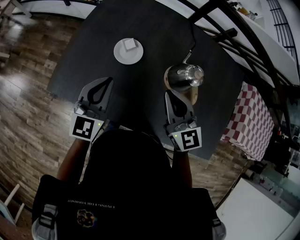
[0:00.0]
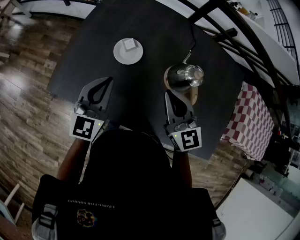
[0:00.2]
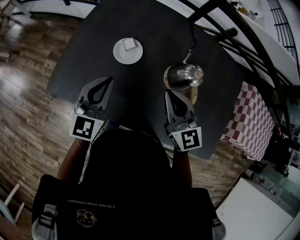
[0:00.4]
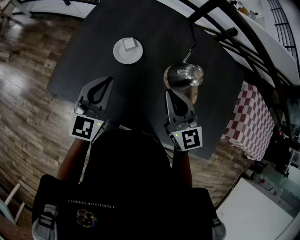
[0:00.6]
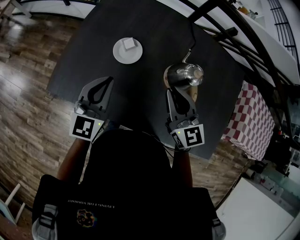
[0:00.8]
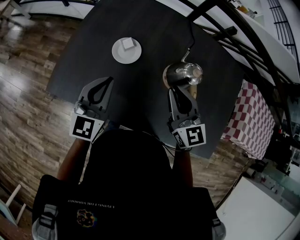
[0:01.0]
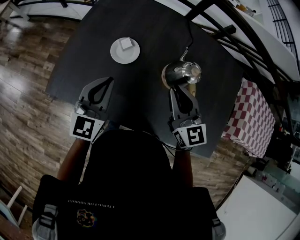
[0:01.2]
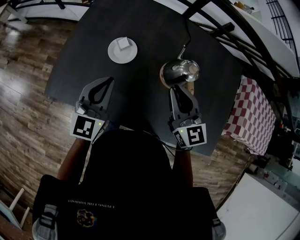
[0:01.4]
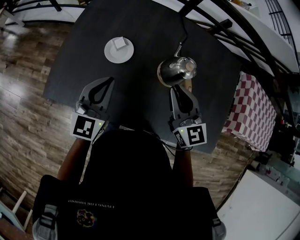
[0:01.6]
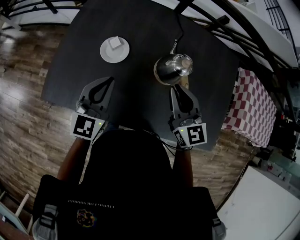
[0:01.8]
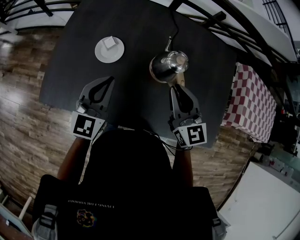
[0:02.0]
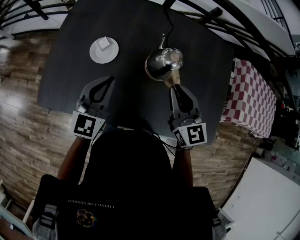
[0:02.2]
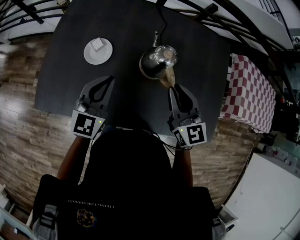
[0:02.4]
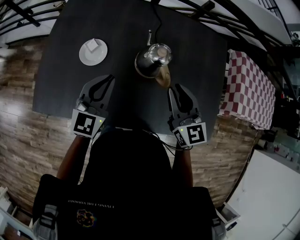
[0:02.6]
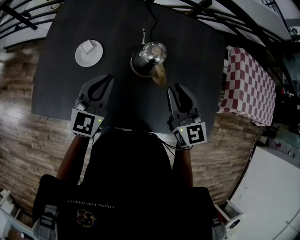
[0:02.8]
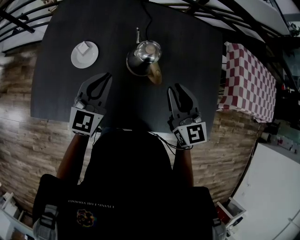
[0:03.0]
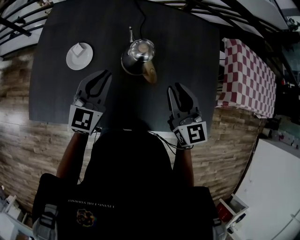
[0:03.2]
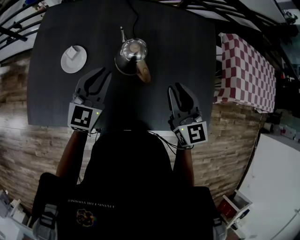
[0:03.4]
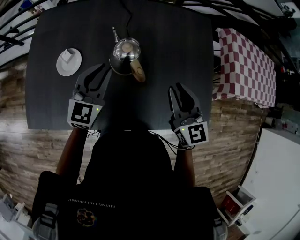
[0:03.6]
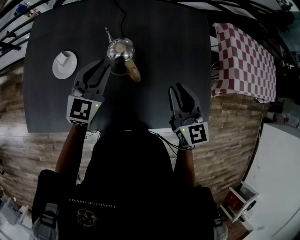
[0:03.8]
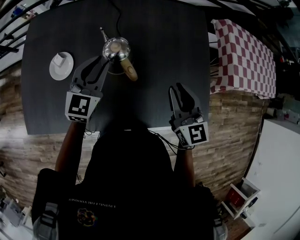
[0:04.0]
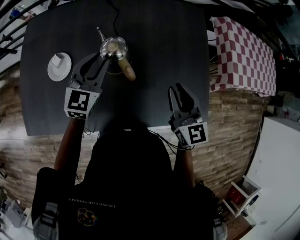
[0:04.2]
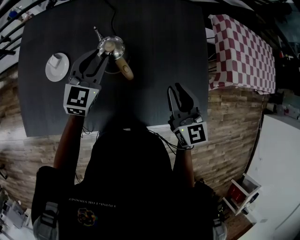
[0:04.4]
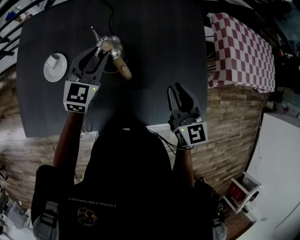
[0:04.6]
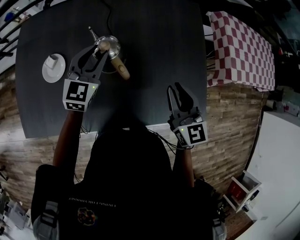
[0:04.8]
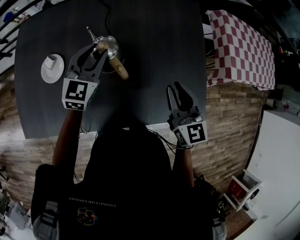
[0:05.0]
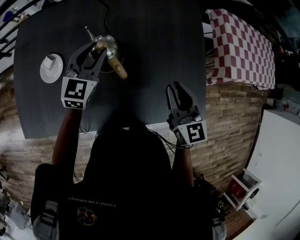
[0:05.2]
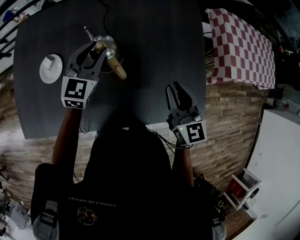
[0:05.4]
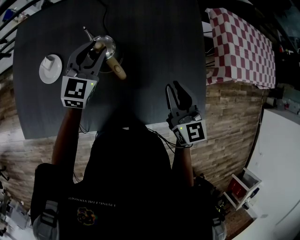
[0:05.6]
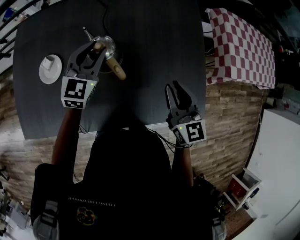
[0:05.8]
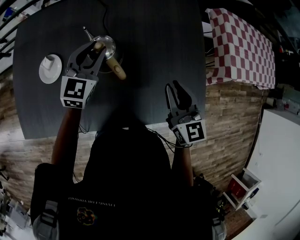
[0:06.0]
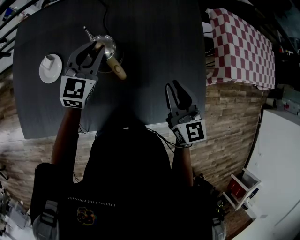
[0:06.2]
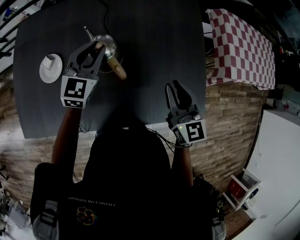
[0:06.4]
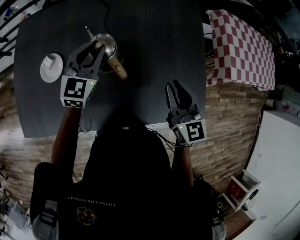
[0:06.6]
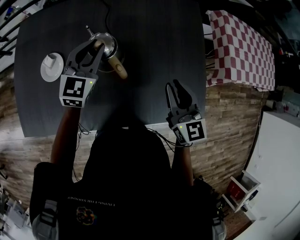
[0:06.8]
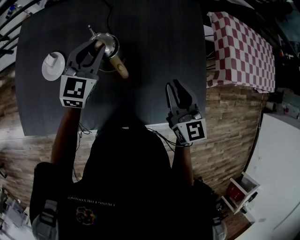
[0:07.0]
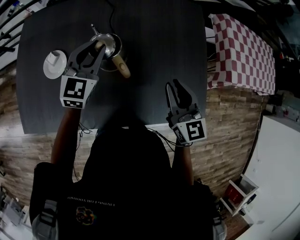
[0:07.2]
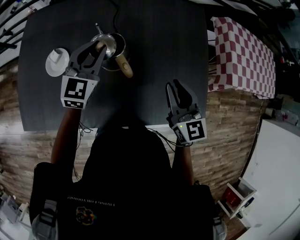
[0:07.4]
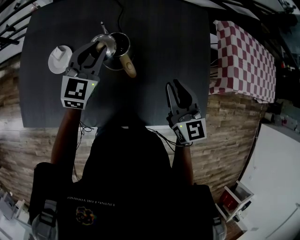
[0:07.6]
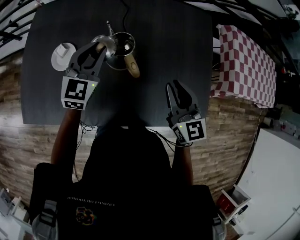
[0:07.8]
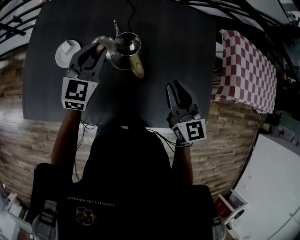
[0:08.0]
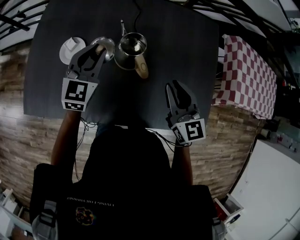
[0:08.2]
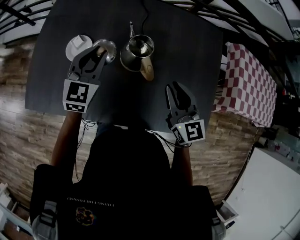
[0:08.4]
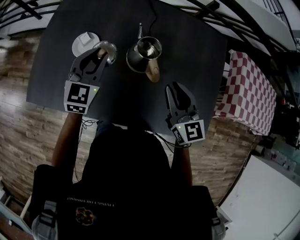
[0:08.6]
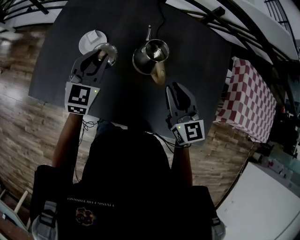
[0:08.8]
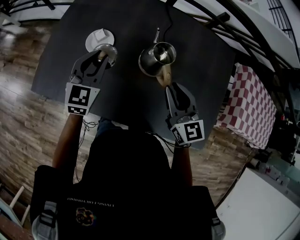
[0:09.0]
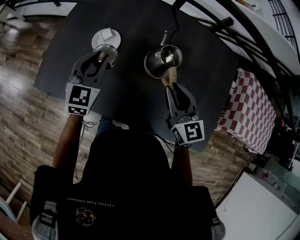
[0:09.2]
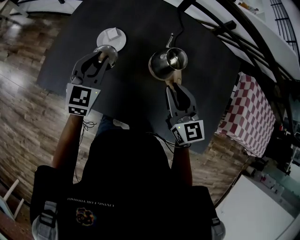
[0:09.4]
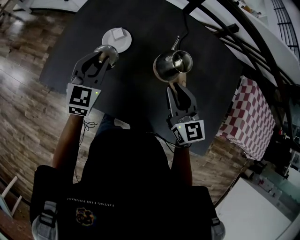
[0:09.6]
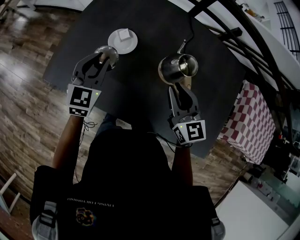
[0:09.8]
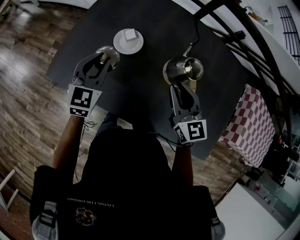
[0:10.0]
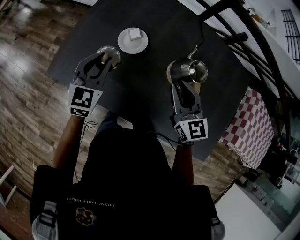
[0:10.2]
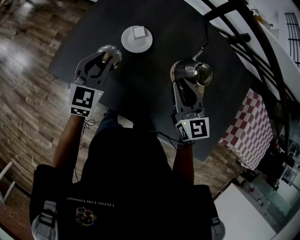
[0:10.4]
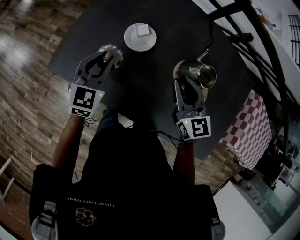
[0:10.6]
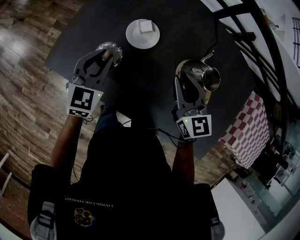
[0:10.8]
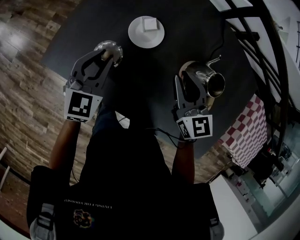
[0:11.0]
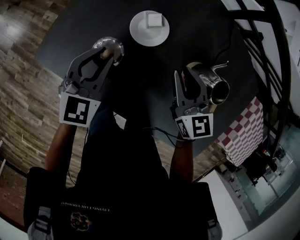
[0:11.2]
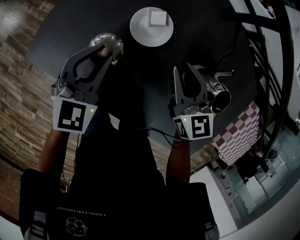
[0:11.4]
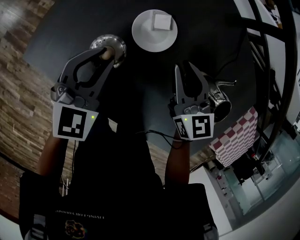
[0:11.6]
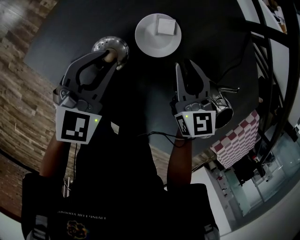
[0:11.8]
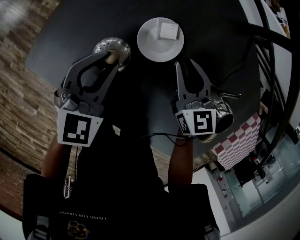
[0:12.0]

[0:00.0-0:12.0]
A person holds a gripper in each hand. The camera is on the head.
0:00.0 to 0:01.6: The right gripper is displaced to the right by about 5 cm.
0:01.6 to 0:03.0: The two grippers go some 15 cm to the right.
0:03.0 to 0:04.4: The left gripper travels forward and to the right by about 15 cm, and opens up, while the right gripper goes about 10 cm to the right.
0:04.4 to 0:06.0: The grippers make only small movements.
0:06.0 to 0:07.6: The left gripper ends up approximately 5 cm from where it was.
0:07.6 to 0:09.0: Both grippers travel together to the left, some 15 cm.
0:09.0 to 0:10.4: The left gripper is displaced to the left by roughly 15 cm; the right gripper shifts approximately 15 cm to the left and forward.
0:10.4 to 0:12.0: The right gripper goes roughly 25 cm forward, downward and to the left, while the left gripper shifts some 10 cm downward and forward.

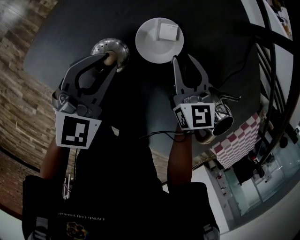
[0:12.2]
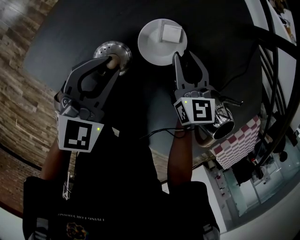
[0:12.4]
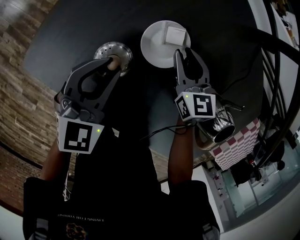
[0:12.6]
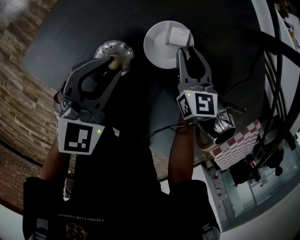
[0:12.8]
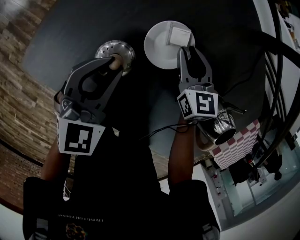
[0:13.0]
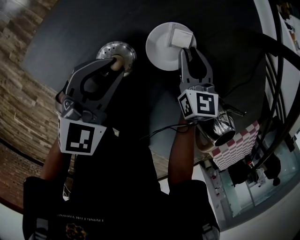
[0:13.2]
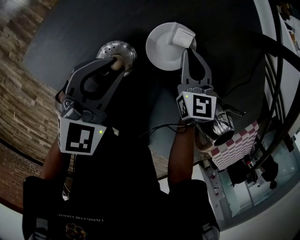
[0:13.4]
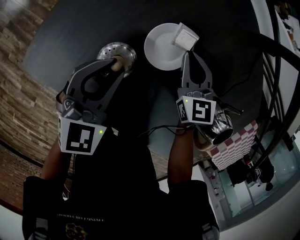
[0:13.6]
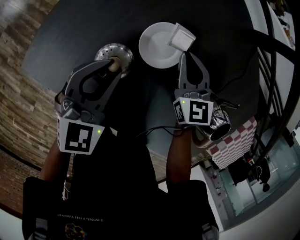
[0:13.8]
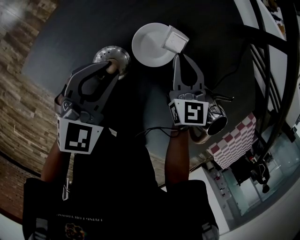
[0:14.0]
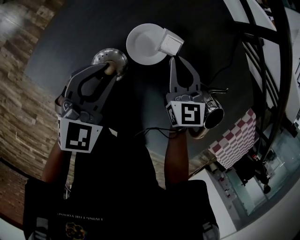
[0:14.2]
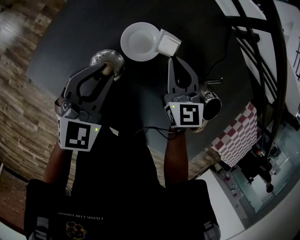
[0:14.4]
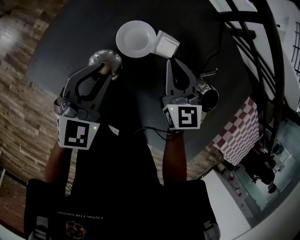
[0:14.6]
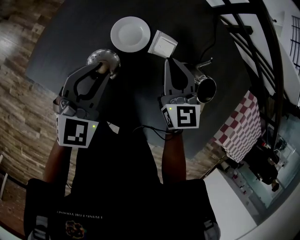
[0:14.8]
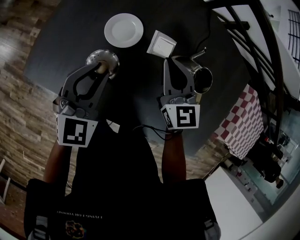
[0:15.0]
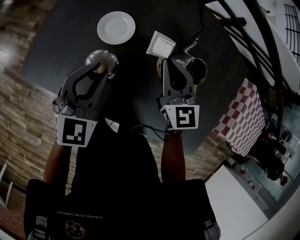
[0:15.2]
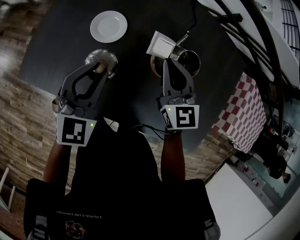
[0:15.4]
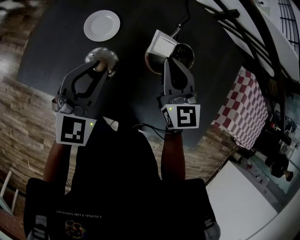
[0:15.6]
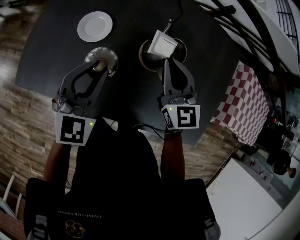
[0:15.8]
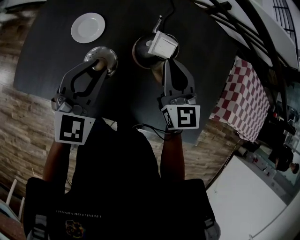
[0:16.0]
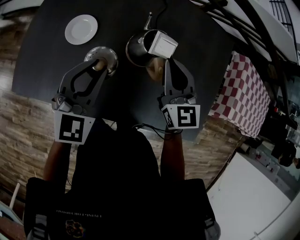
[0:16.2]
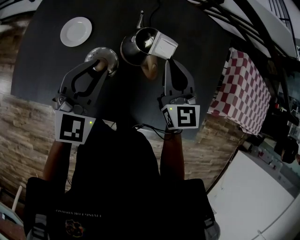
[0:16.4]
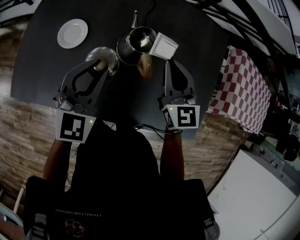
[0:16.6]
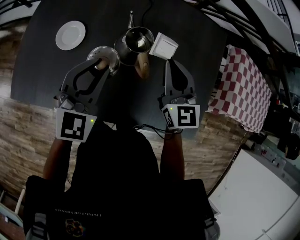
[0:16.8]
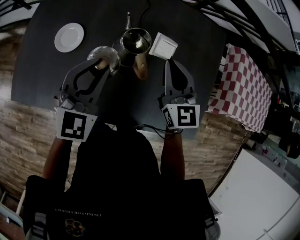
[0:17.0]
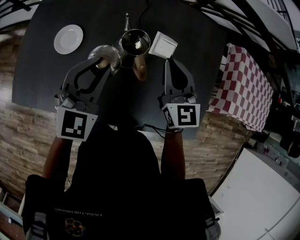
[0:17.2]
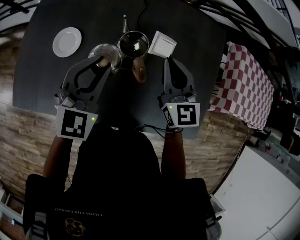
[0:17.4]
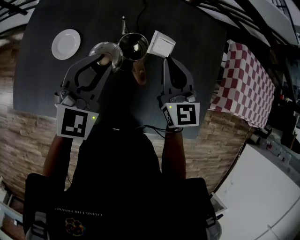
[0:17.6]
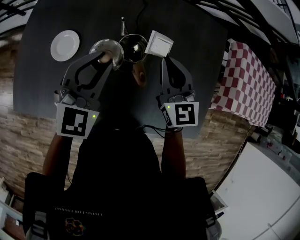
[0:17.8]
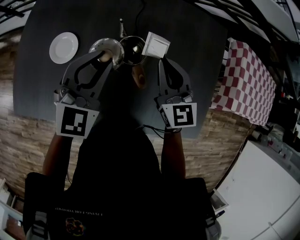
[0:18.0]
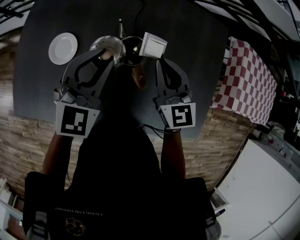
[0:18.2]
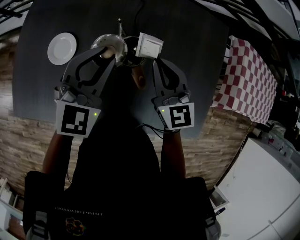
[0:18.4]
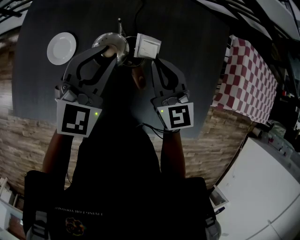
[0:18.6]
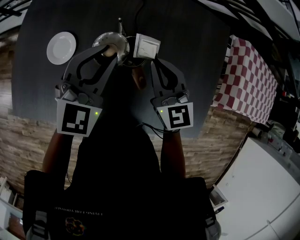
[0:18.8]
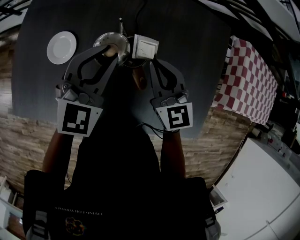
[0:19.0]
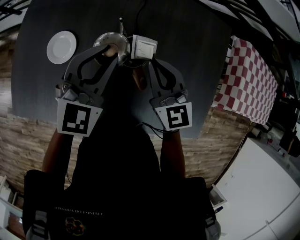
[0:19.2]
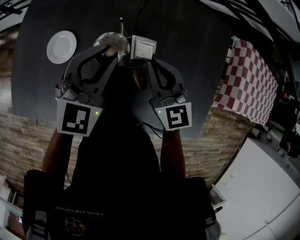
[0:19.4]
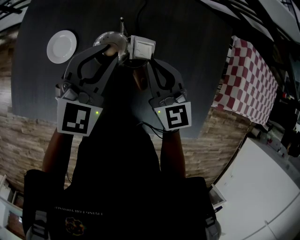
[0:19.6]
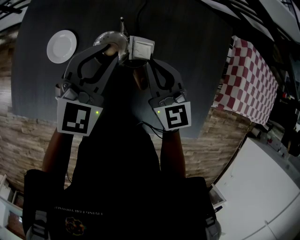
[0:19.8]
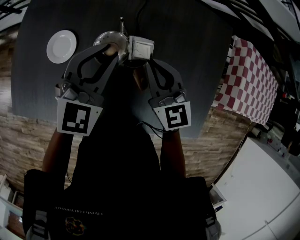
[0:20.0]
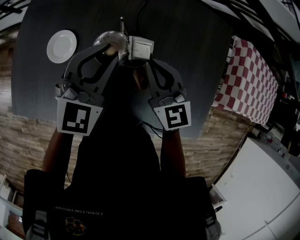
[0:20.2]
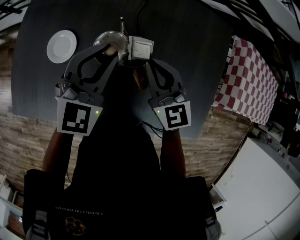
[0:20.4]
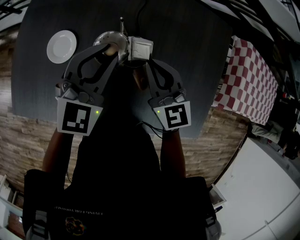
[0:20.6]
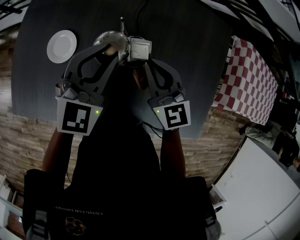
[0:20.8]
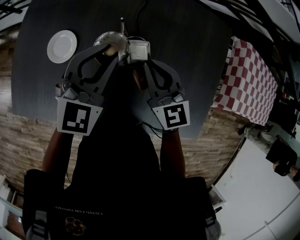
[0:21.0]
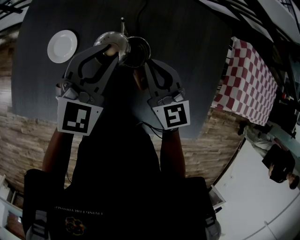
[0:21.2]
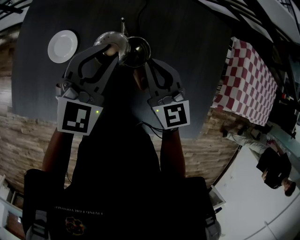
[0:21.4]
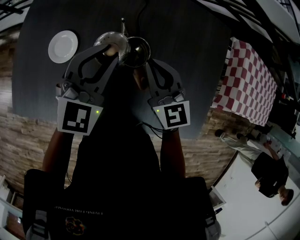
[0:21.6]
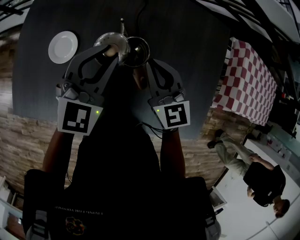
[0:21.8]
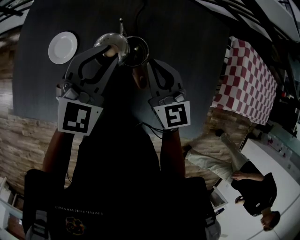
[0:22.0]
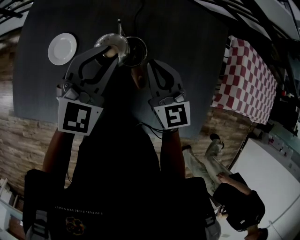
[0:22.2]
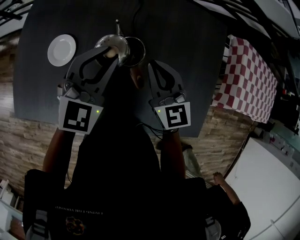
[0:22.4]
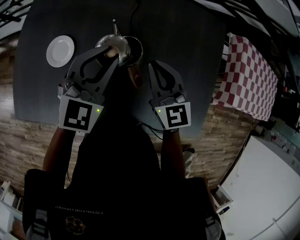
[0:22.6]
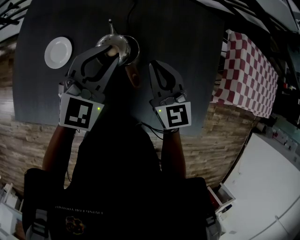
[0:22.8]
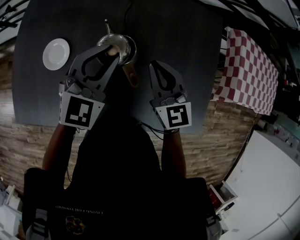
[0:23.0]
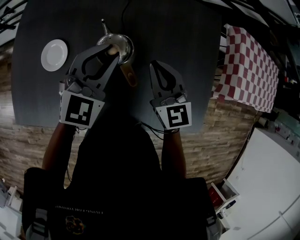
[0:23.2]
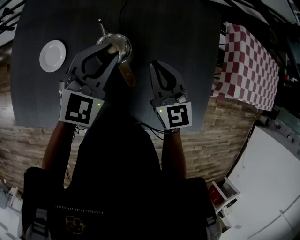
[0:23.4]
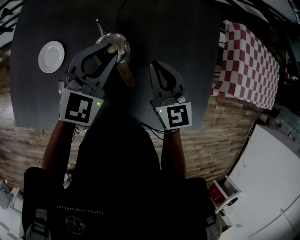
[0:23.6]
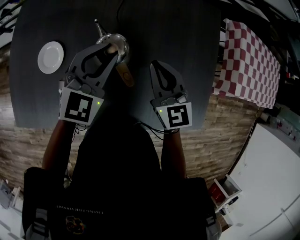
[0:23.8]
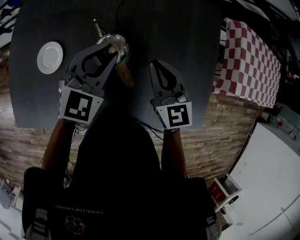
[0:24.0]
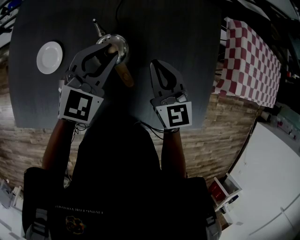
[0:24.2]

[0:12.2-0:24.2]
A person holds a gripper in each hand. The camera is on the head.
0:13.8 to 0:15.2: The left gripper heads to the right, upward and backward, covering approximately 15 cm; the right gripper heads upward, backward and to the right, covering about 25 cm.
0:15.2 to 0:16.6: Both grippers travel together to the right, about 15 cm.
0:16.6 to 0:18.2: The right gripper ends up about 5 cm from where it was. Meanwhile the left gripper is displaced forward by roughly 10 cm.
0:18.2 to 0:19.8: The grippers make only small movements.
0:19.8 to 0:21.2: Both grippers stay about where they are.
0:21.2 to 0:22.6: The grippers move only a little.
0:22.6 to 0:24.2: Both grippers travel together to the right, approximately 5 cm.
